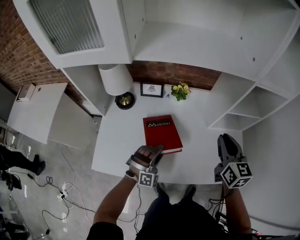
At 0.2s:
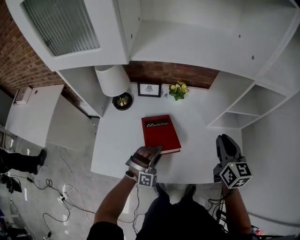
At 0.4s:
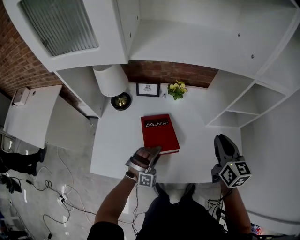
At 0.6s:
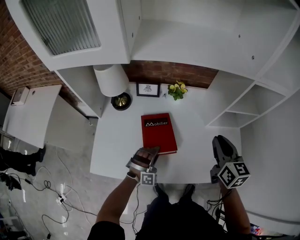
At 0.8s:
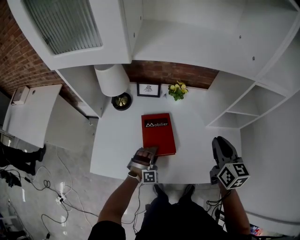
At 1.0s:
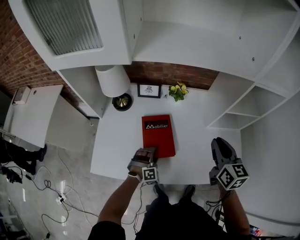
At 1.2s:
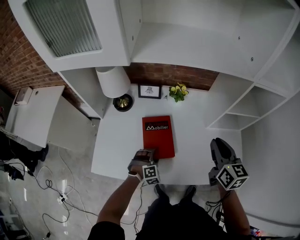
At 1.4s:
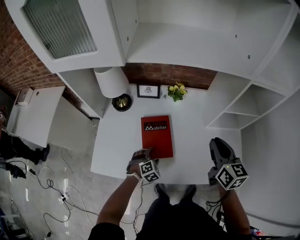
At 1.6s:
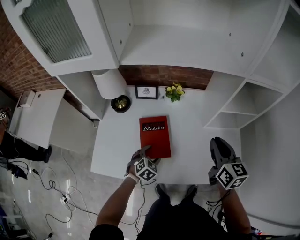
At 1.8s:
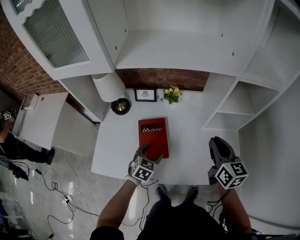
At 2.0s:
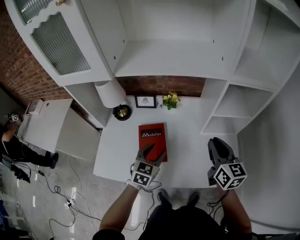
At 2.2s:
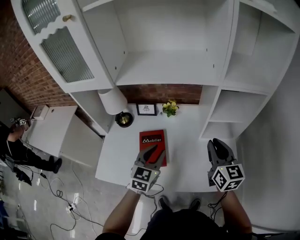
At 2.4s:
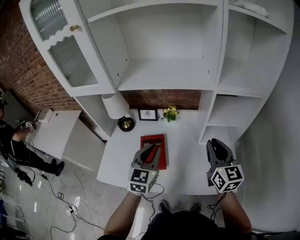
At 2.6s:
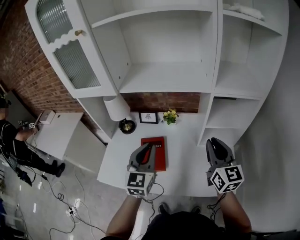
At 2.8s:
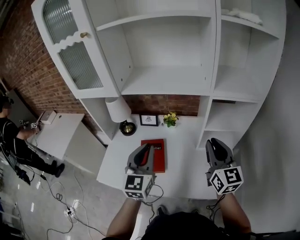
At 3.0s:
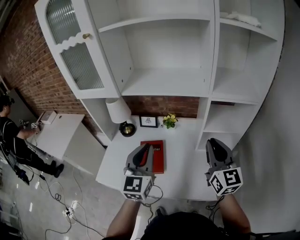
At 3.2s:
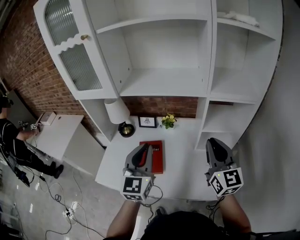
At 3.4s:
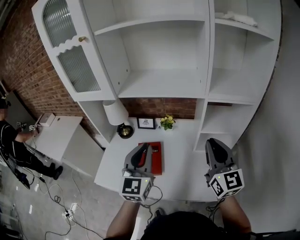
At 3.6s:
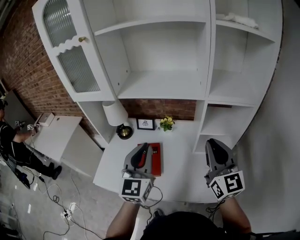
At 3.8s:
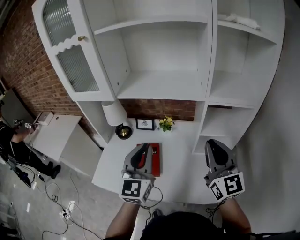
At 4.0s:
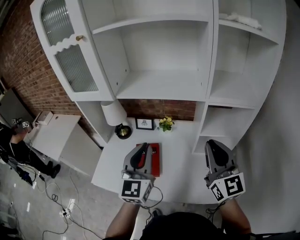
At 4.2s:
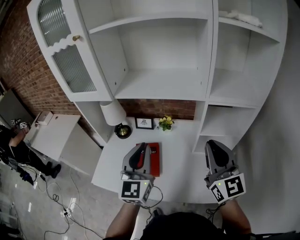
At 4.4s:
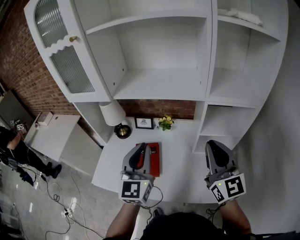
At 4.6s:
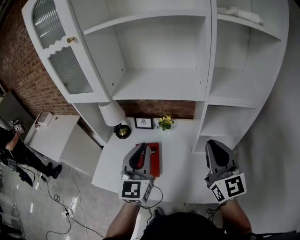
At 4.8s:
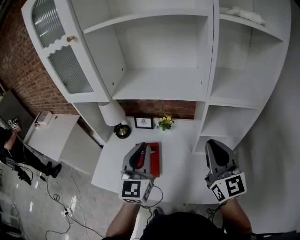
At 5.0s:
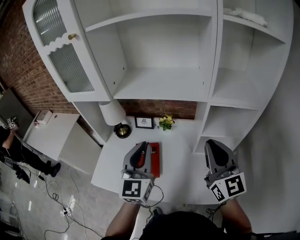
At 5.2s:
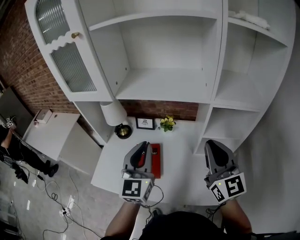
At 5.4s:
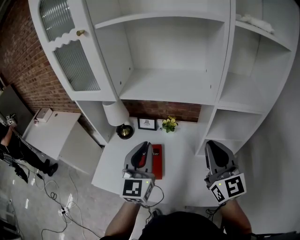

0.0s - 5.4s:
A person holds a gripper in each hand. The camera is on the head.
0.0s - 1.4s: The left gripper shifts some 10 cm downward, tilts its fingers roughly 30 degrees downward, and opens up.
1.4s - 2.8s: The right gripper goes some 15 cm upward and to the right, and changes its angle by some 20 degrees; the left gripper goes some 40 cm upward, tips its fingers upward by approximately 60 degrees, and closes up.
2.8s - 4.0s: The right gripper moves upward, approximately 5 cm.
4.0s - 5.4s: The grippers stay close to where they were, moving slightly.

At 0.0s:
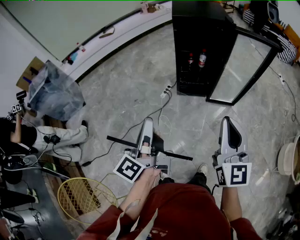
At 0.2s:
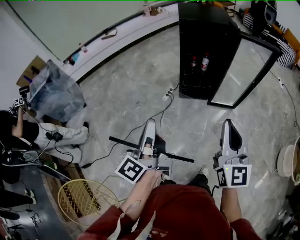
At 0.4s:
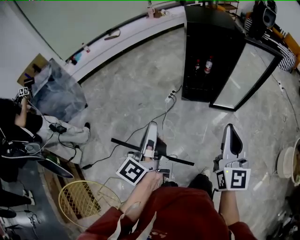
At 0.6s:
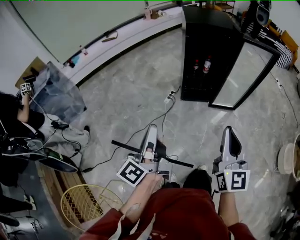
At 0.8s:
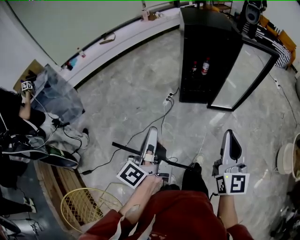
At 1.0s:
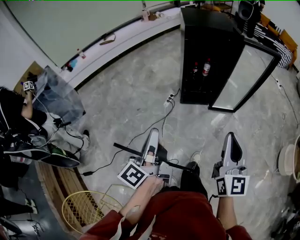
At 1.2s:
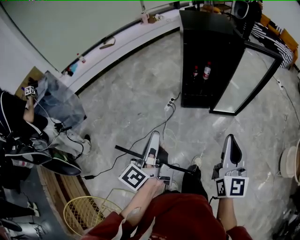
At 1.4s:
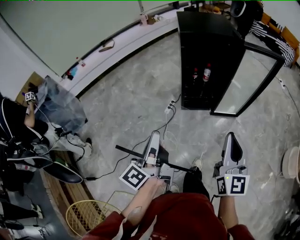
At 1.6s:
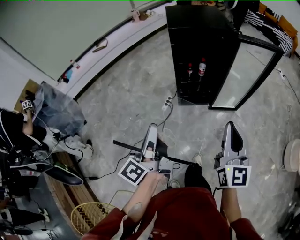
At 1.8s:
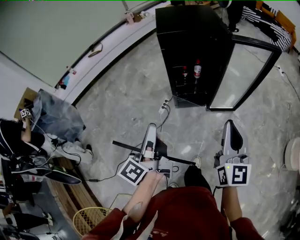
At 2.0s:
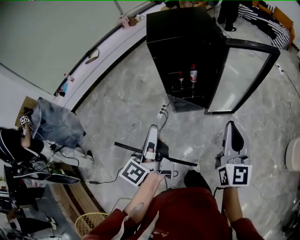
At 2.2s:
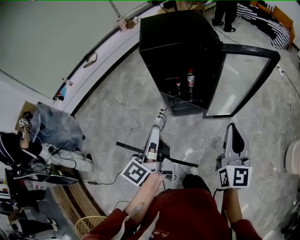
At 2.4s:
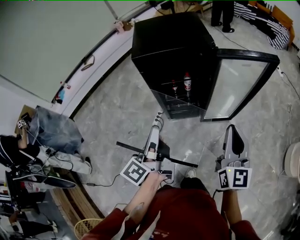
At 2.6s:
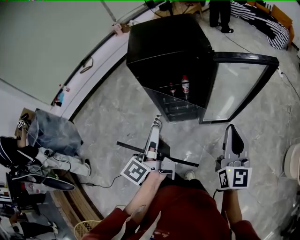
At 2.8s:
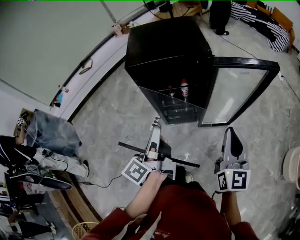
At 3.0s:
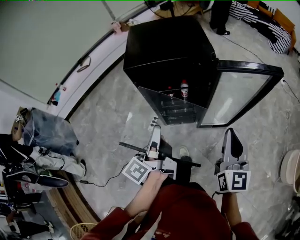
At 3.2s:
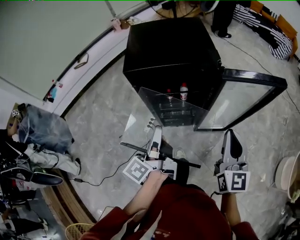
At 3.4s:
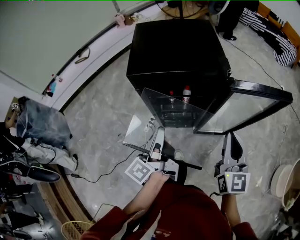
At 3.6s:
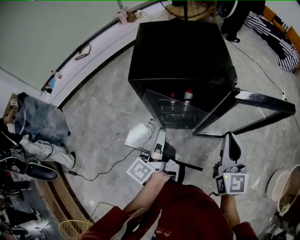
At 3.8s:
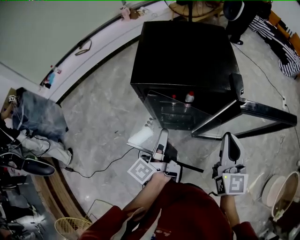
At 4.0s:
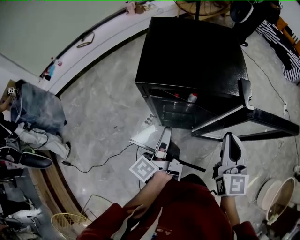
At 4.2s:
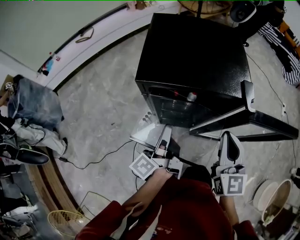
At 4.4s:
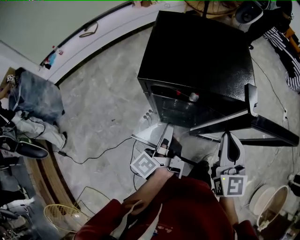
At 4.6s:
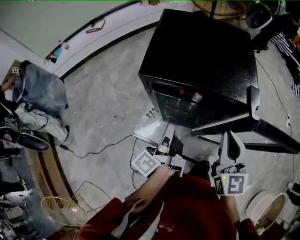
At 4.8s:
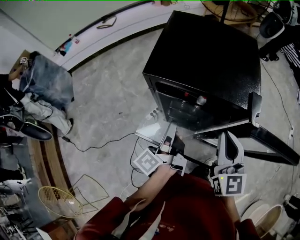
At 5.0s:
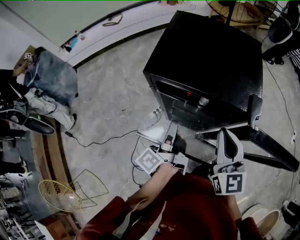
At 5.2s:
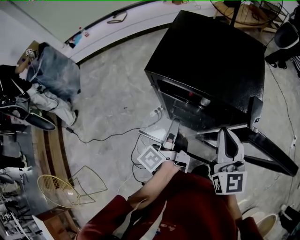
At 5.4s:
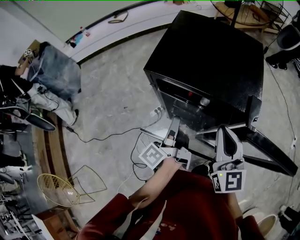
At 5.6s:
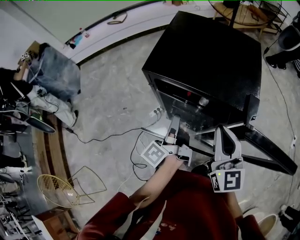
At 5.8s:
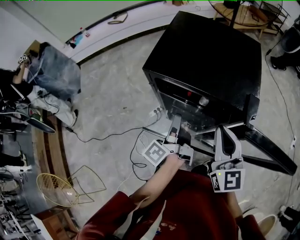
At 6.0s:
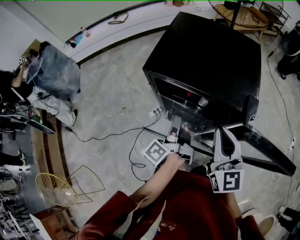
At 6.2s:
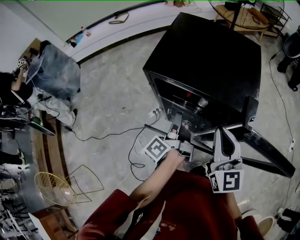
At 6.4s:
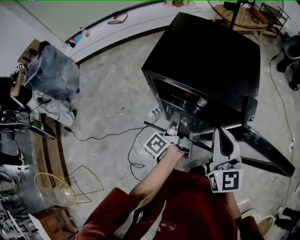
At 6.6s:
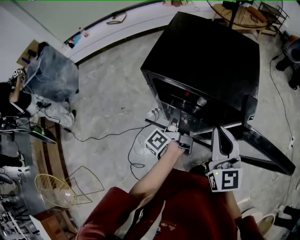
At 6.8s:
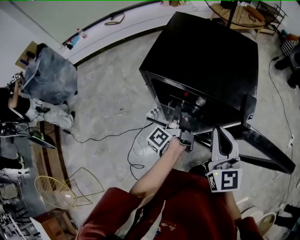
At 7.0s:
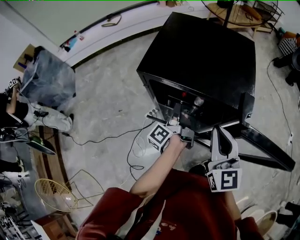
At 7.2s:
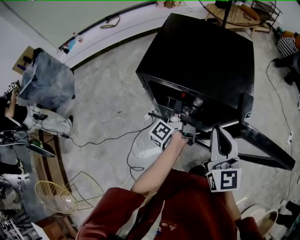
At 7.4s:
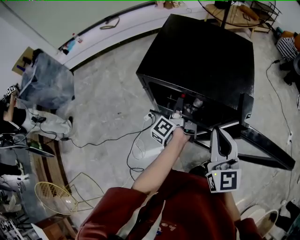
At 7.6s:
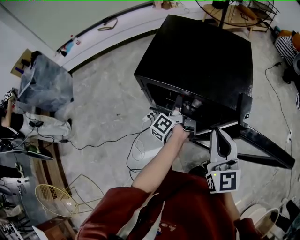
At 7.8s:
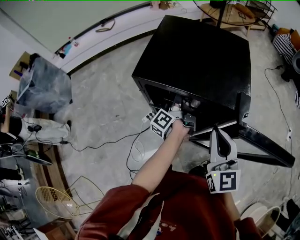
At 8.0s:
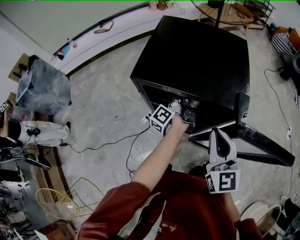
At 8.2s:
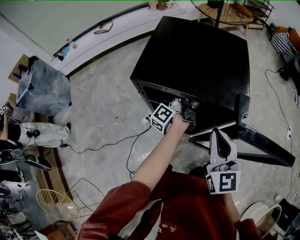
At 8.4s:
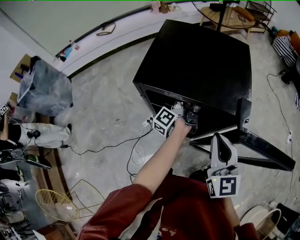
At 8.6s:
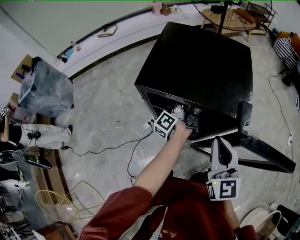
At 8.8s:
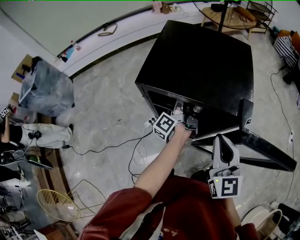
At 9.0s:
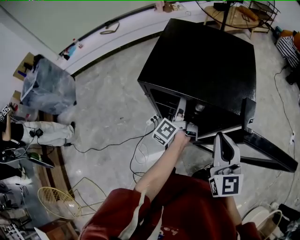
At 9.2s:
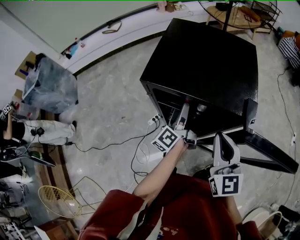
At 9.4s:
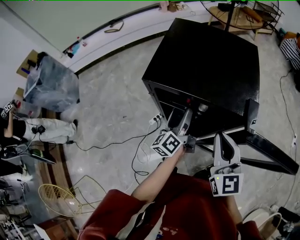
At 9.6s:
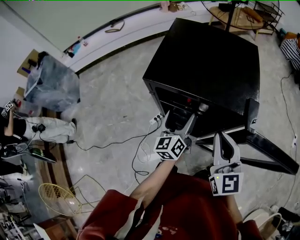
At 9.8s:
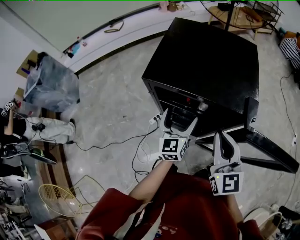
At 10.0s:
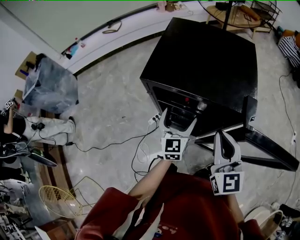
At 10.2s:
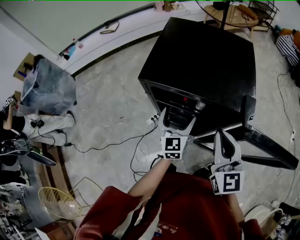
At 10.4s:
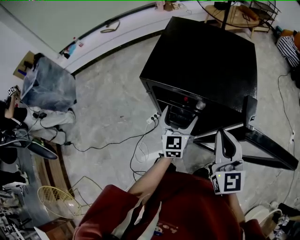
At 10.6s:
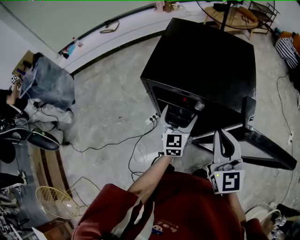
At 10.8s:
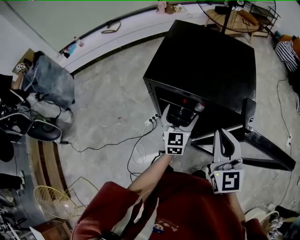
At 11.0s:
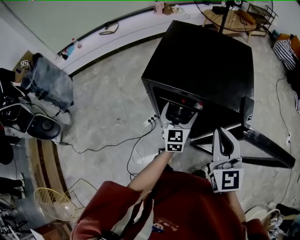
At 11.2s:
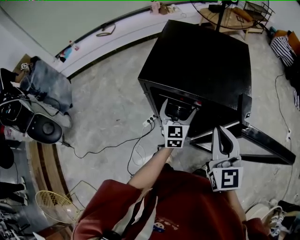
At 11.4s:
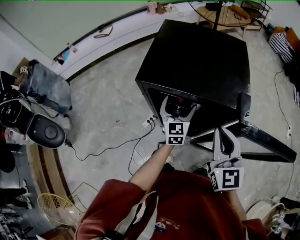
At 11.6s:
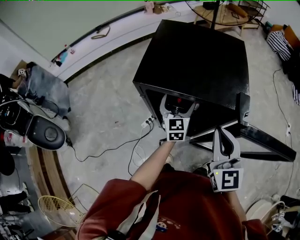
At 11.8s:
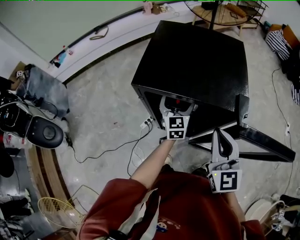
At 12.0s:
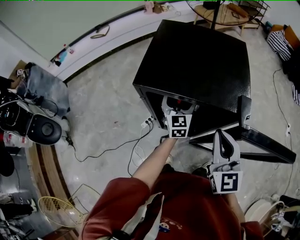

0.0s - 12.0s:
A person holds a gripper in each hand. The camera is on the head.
0.0s - 1.6s: Both grippers move forward, roughly 10 cm.
1.6s - 3.0s: The grippers both shift forward and to the right by about 30 cm.
3.0s - 4.4s: The left gripper goes approximately 15 cm forward and downward; the right gripper travels forward and to the left by about 20 cm.
4.4s - 6.0s: The right gripper turns by roughly 20 degrees.
6.0s - 7.6s: The left gripper moves forward and downward, approximately 10 cm.
7.6s - 9.0s: The left gripper opens its fingers.
9.0s - 10.4s: The left gripper moves backward, approximately 5 cm, rolls clockwise, seen from behind, by about 70 degrees, and opens.
10.4s - 12.0s: The left gripper goes roughly 10 cm forward.

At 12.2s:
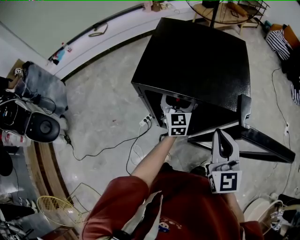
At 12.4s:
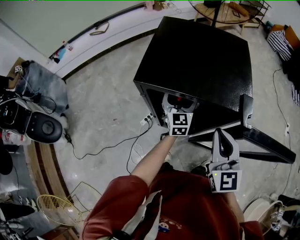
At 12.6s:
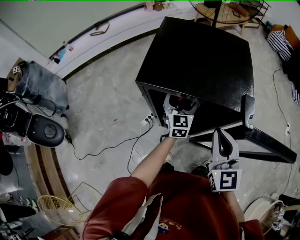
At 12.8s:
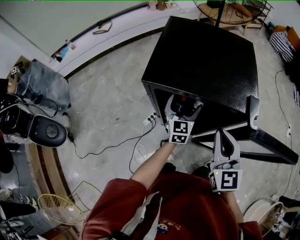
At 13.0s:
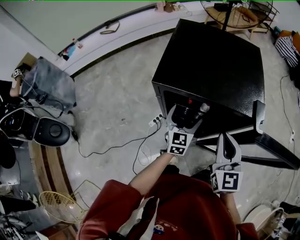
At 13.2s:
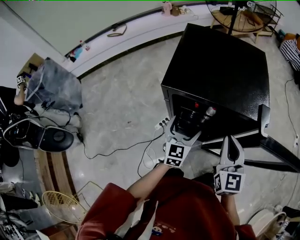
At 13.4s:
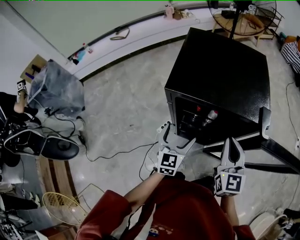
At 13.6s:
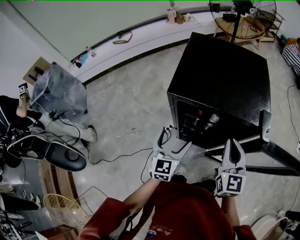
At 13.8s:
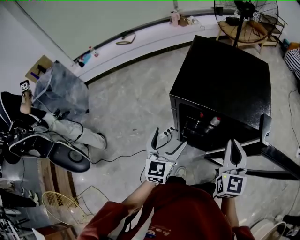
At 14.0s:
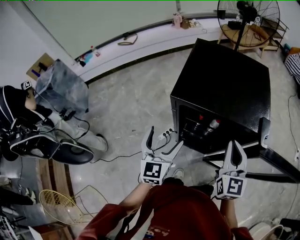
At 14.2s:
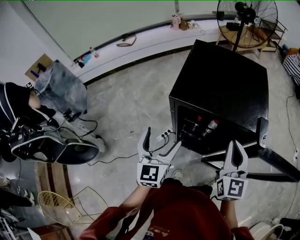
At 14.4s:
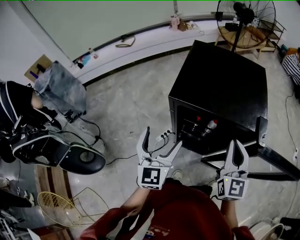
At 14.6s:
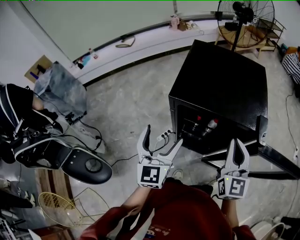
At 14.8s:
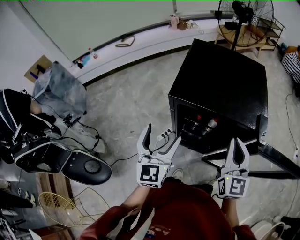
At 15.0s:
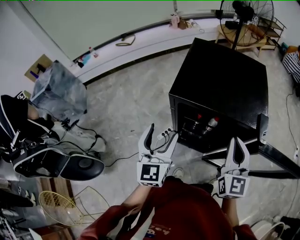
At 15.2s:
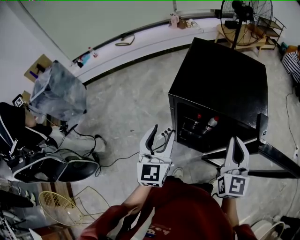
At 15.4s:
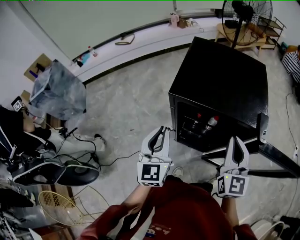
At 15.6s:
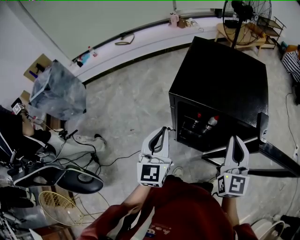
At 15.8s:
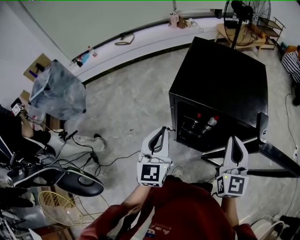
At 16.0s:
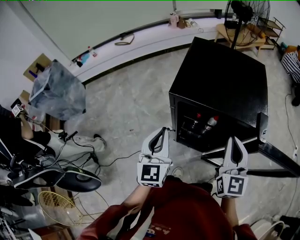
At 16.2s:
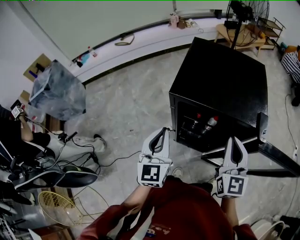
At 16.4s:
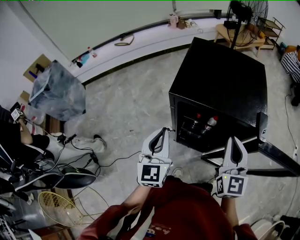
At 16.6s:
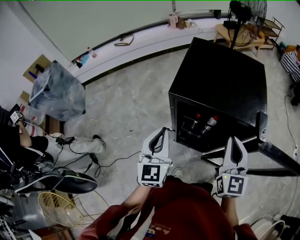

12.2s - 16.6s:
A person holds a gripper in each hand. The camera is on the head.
12.2s - 13.6s: The left gripper is displaced backward and to the left by roughly 20 cm.
13.6s - 15.2s: The left gripper travels upward by about 10 cm, and closes up.
15.2s - 16.6s: The left gripper closes.

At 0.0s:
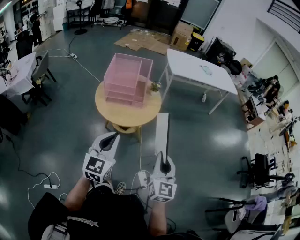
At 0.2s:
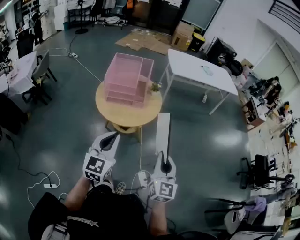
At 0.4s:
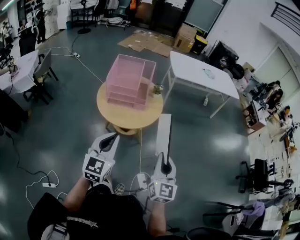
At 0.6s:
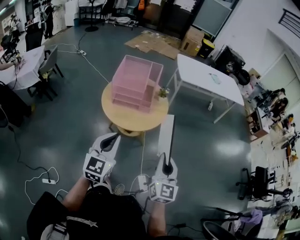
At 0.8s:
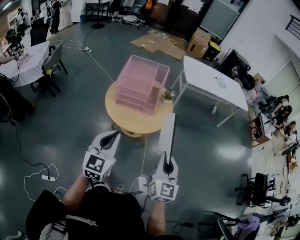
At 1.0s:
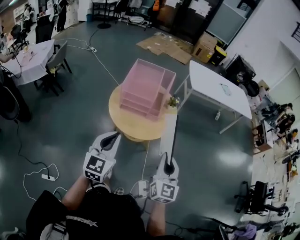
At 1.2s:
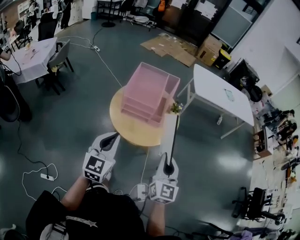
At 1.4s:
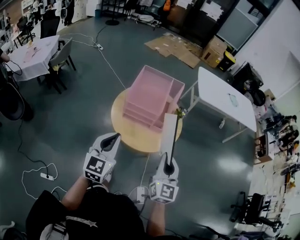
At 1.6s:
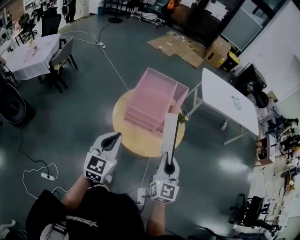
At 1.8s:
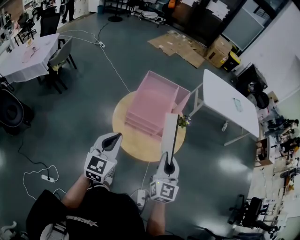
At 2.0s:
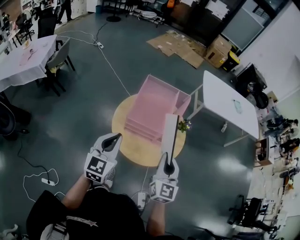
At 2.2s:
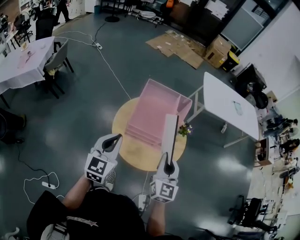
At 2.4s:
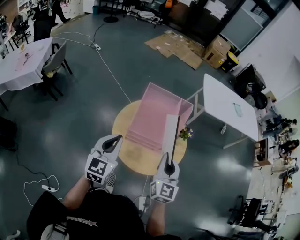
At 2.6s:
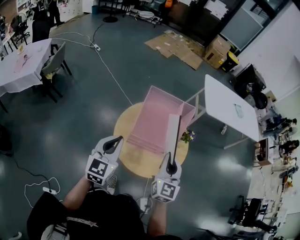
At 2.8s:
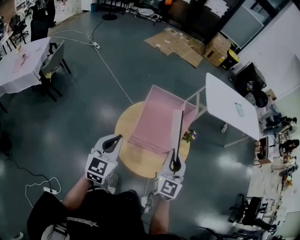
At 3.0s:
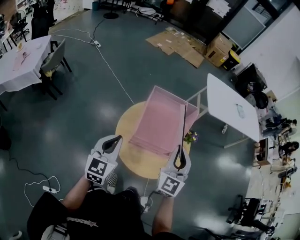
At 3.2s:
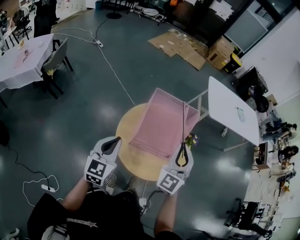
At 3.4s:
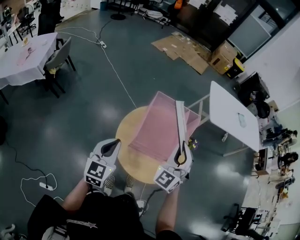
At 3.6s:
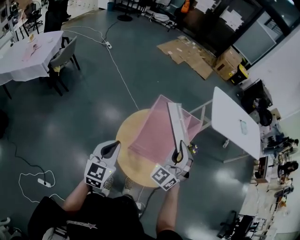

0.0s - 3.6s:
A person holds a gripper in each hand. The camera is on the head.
0.0s - 1.8s: Both grippers travel together forward and to the left, some 30 cm.
1.8s - 3.6s: The left gripper moves forward and to the left, about 15 cm. The right gripper heads forward and to the left, covering approximately 25 cm, and rolls counterclockwise, seen from behind, by about 50 degrees.
